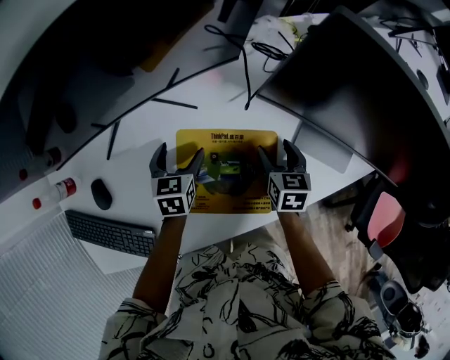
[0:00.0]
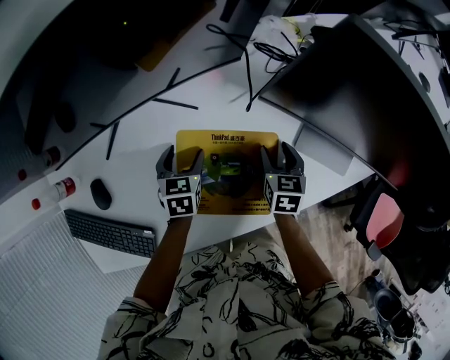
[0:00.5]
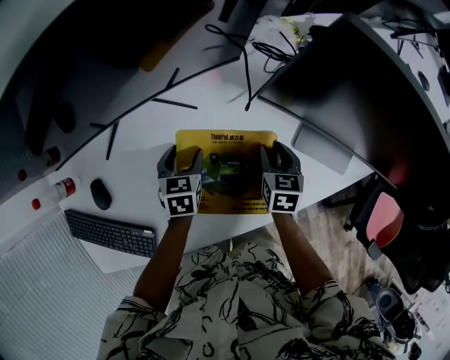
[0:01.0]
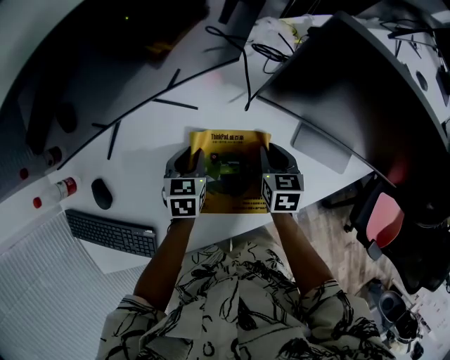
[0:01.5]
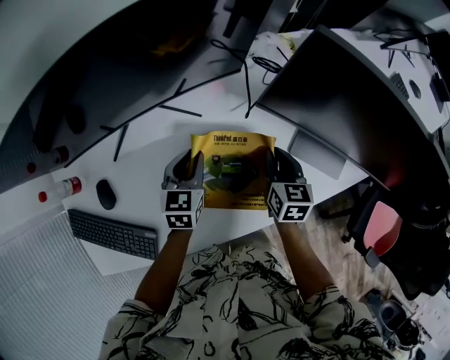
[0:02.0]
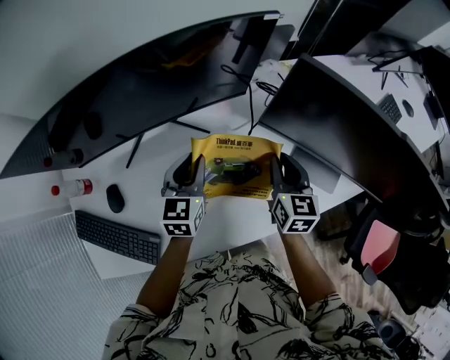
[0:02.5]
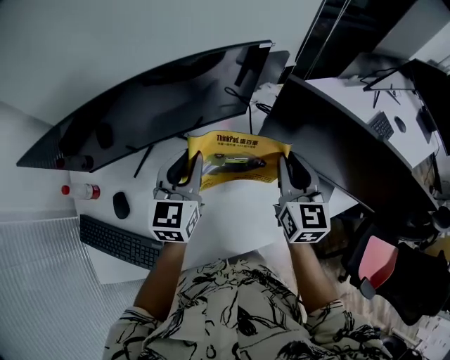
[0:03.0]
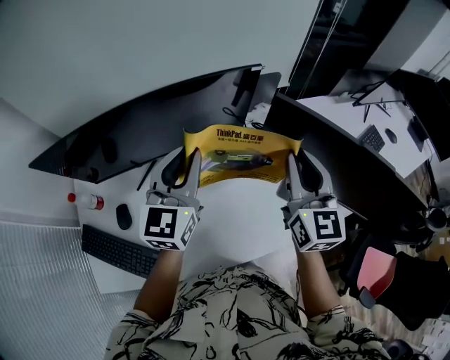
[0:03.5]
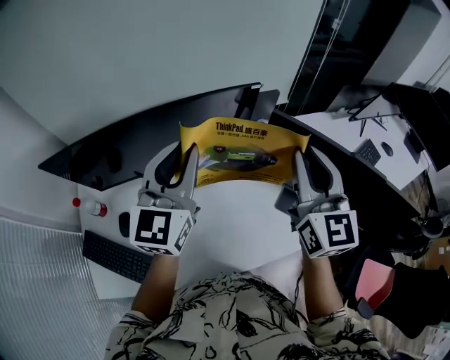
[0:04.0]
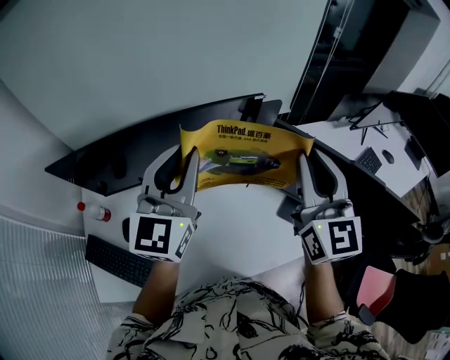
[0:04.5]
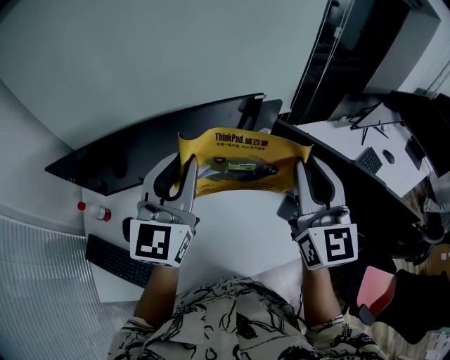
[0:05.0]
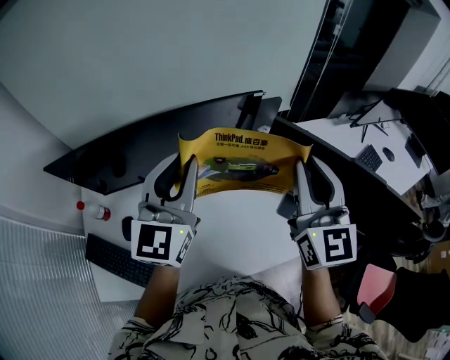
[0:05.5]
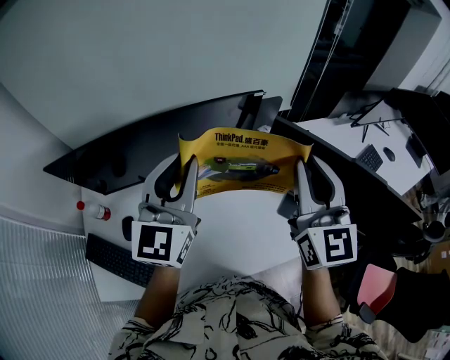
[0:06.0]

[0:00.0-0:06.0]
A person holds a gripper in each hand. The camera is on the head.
0:00.0 to 0:02.0: The two grippers go approximately 5 cm upward. The right gripper closes, while the left gripper closes up.
0:02.0 to 0:04.0: Both grippers move upward, approximately 40 cm. The right gripper tips its fingers upward by about 40 degrees; the left gripper angles its fingers upward, by roughly 40 degrees.
0:04.0 to 0:06.0: The grippers move only a little.

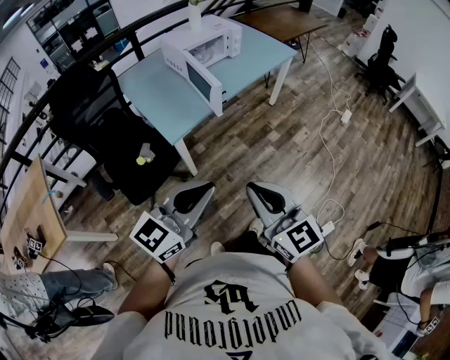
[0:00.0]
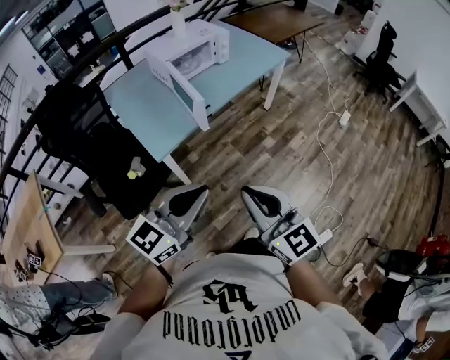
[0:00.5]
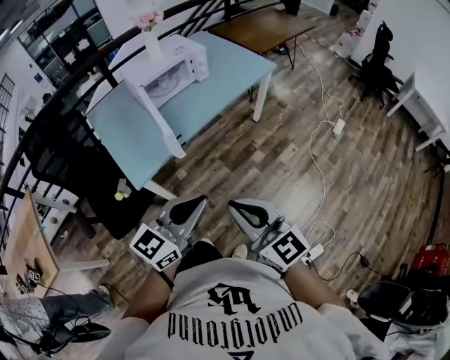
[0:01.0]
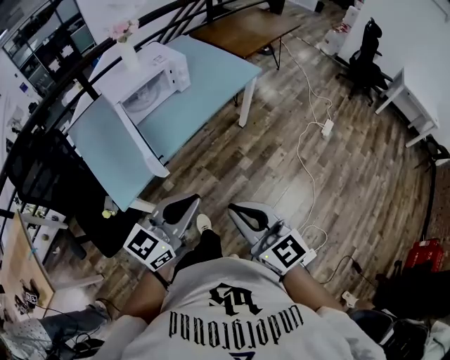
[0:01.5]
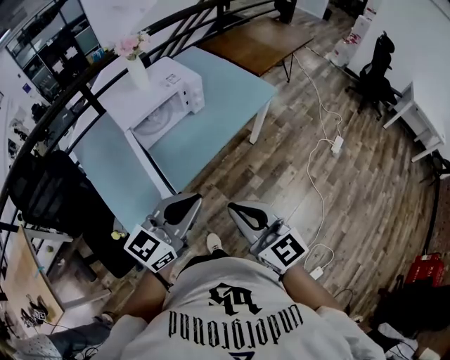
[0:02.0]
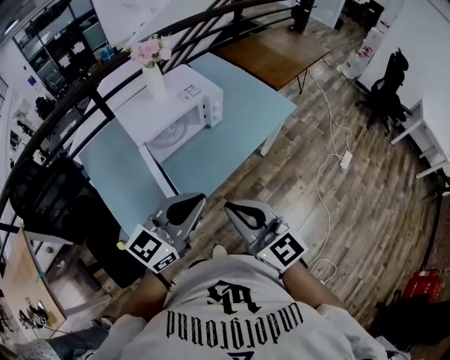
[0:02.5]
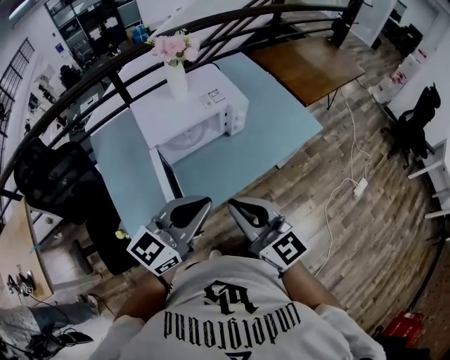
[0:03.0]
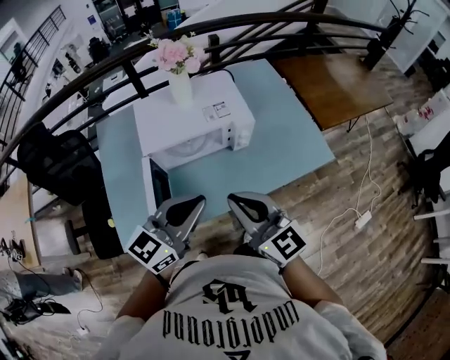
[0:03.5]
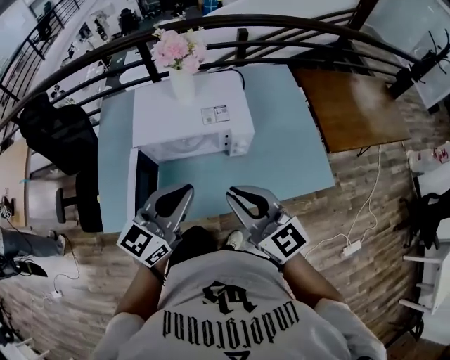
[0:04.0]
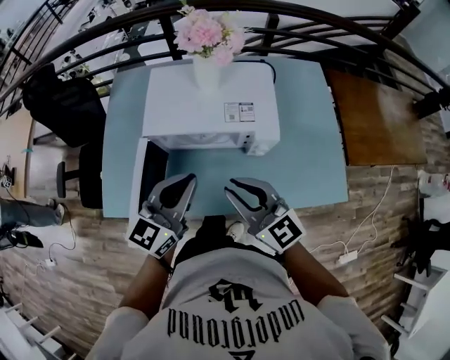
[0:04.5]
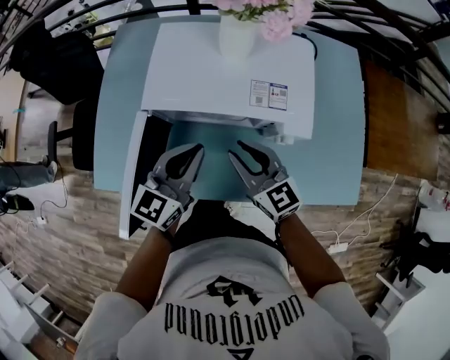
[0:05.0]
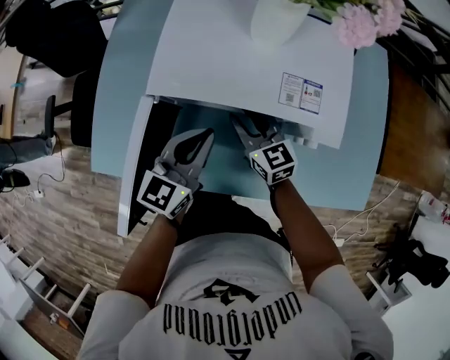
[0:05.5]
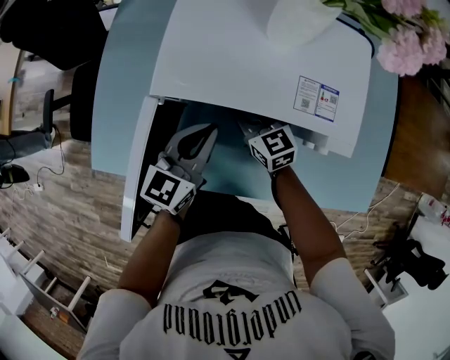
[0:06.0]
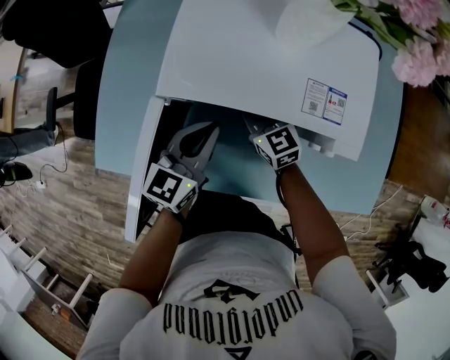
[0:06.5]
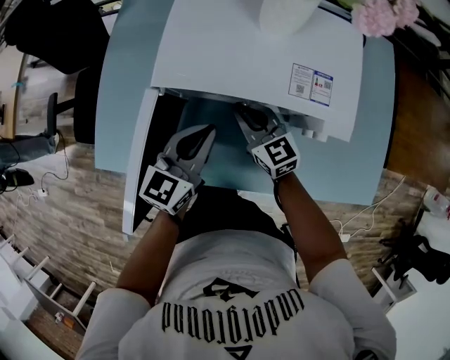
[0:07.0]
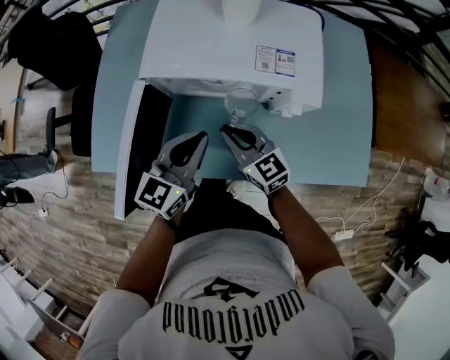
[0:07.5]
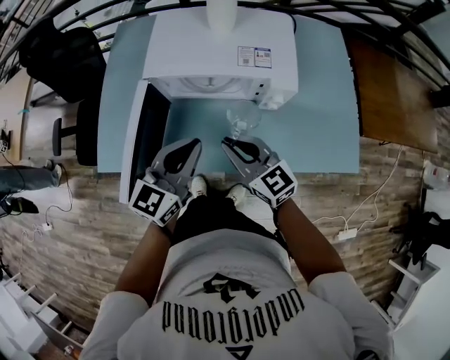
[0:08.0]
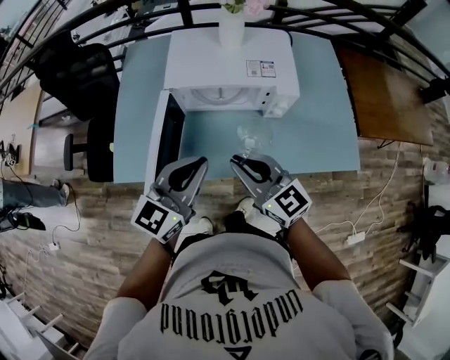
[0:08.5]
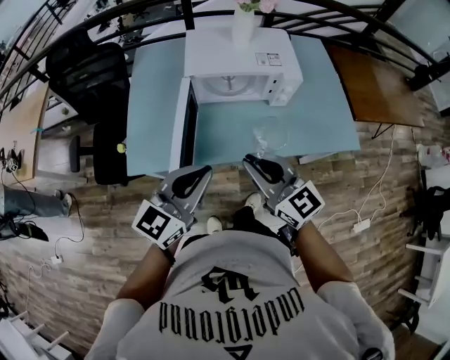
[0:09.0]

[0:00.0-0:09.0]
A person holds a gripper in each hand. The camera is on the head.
0:00.0 to 0:02.0: The pair of grippers is taken forward, roughly 40 cm.
0:02.0 to 0:04.5: The right gripper moves approximately 50 cm, and swivels approximately 50 degrees. The left gripper changes place by approximately 40 cm, and changes its angle by some 50 degrees.
0:04.5 to 0:07.0: Both grippers travel together downward and forward, approximately 25 cm.
0:07.0 to 0:09.0: Both grippers travel together backward and upward, roughly 35 cm. The left gripper rotates roughly 20 degrees.

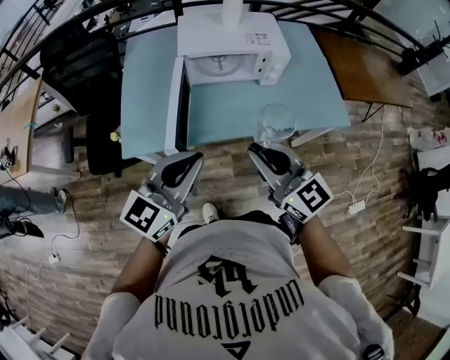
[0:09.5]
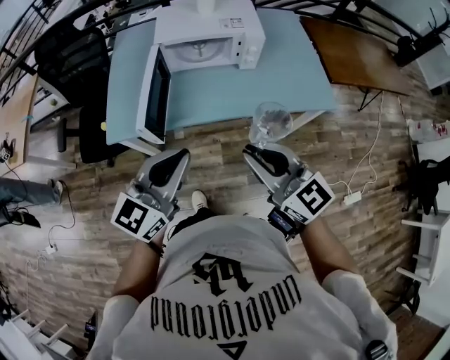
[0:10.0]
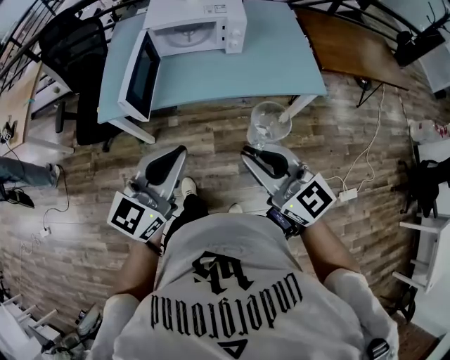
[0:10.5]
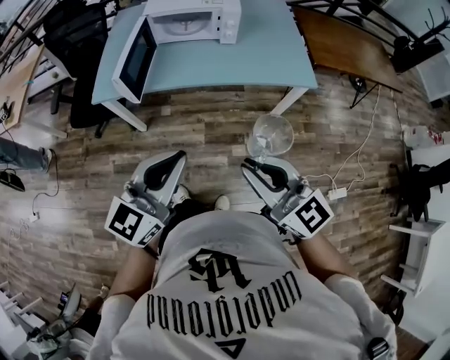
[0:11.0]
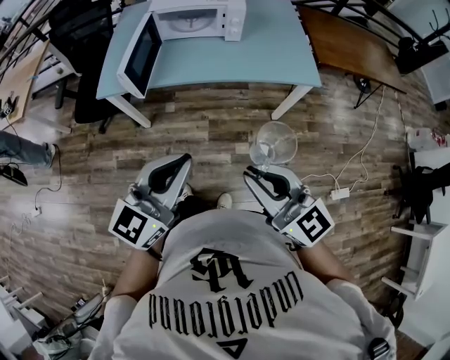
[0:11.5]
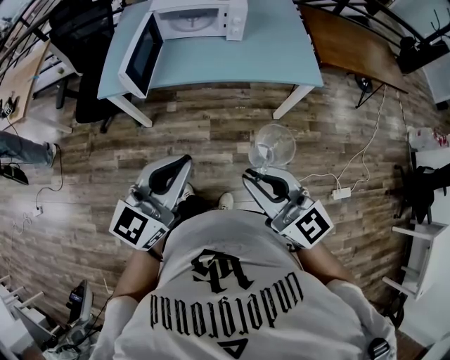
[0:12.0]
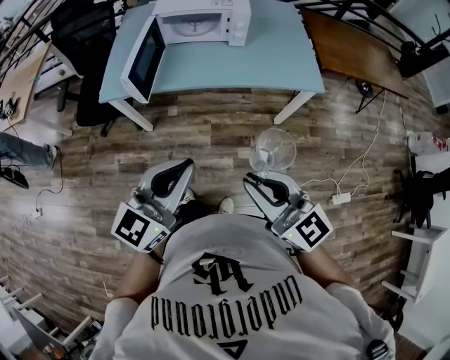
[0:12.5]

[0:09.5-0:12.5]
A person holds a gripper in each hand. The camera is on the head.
0:09.5 to 0:11.0: The two grippers go about 30 cm backward and to the right.
0:11.0 to 0:12.5: The grippers stay close to where they were, moving slightly.

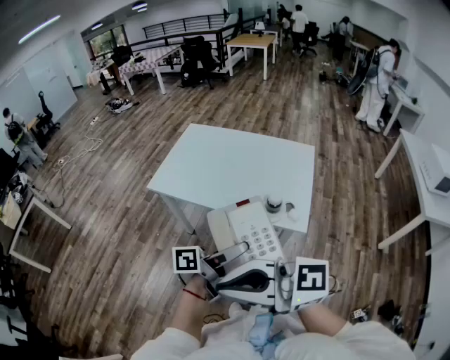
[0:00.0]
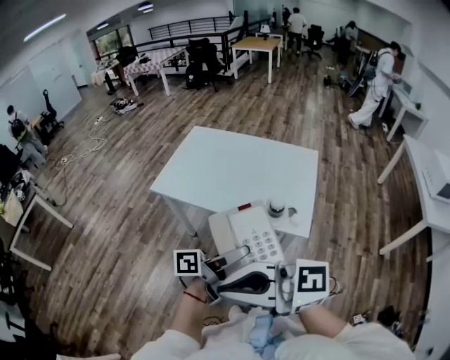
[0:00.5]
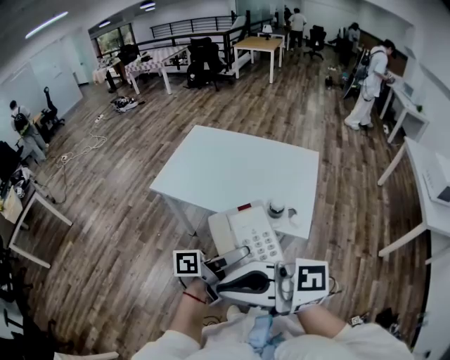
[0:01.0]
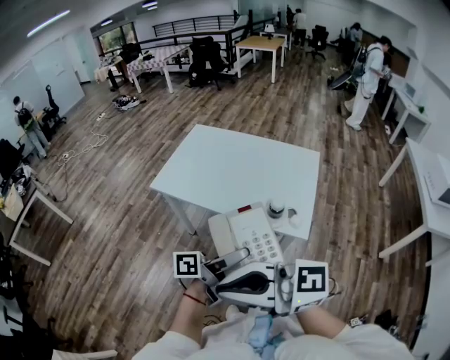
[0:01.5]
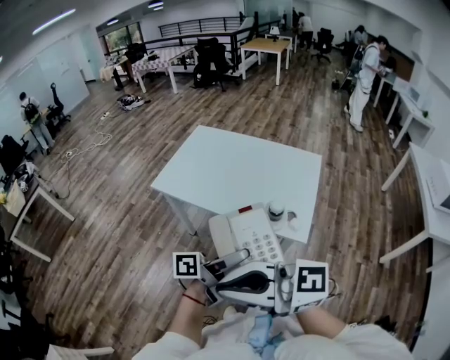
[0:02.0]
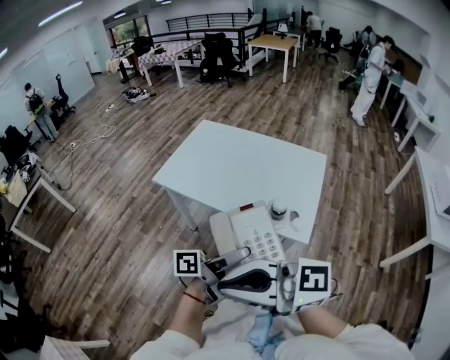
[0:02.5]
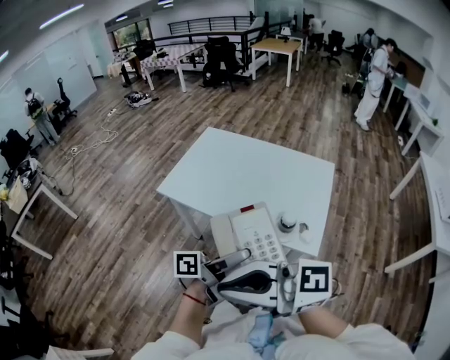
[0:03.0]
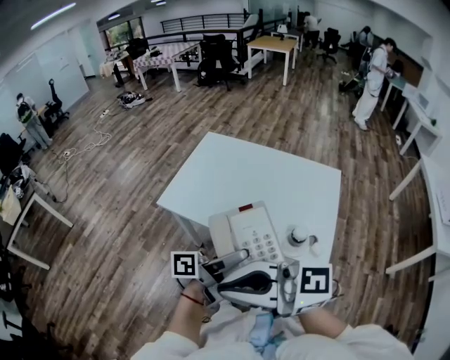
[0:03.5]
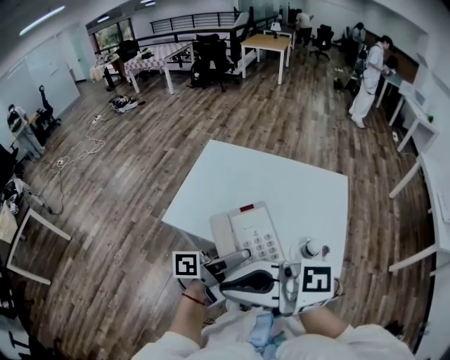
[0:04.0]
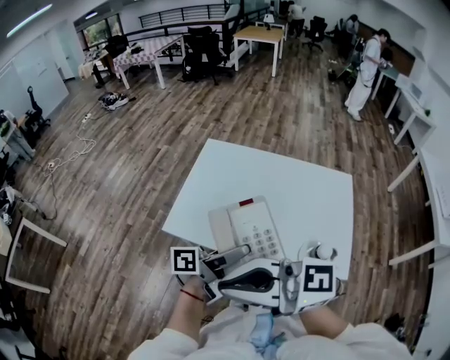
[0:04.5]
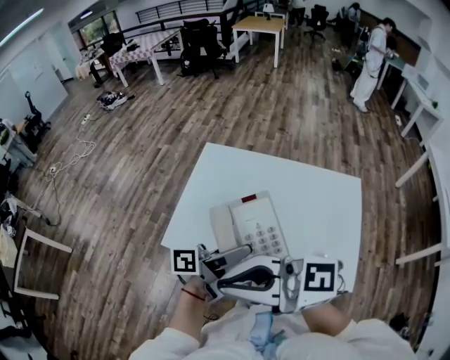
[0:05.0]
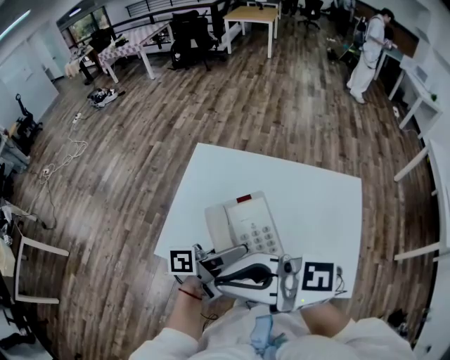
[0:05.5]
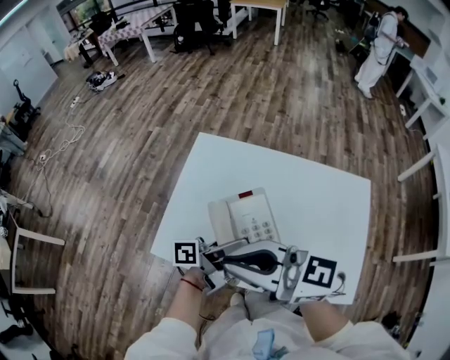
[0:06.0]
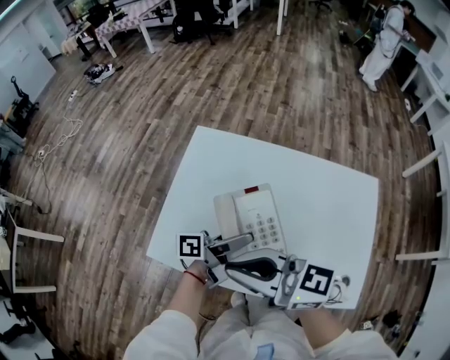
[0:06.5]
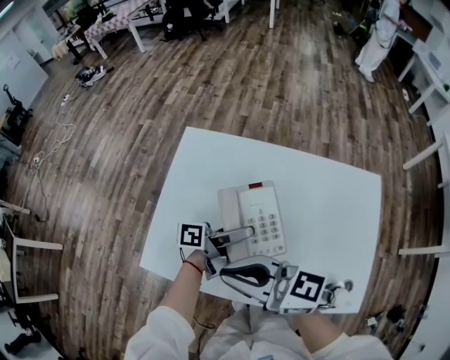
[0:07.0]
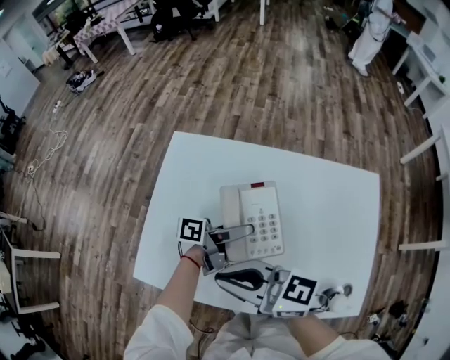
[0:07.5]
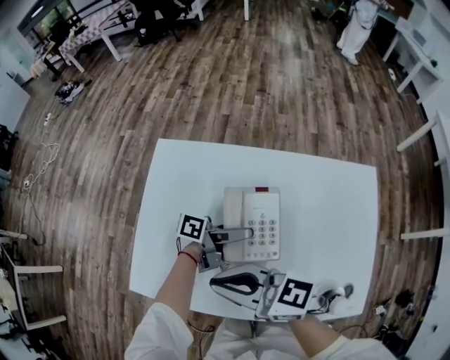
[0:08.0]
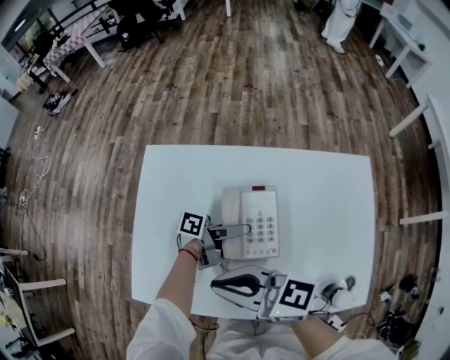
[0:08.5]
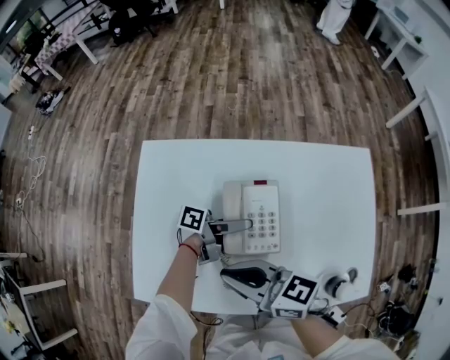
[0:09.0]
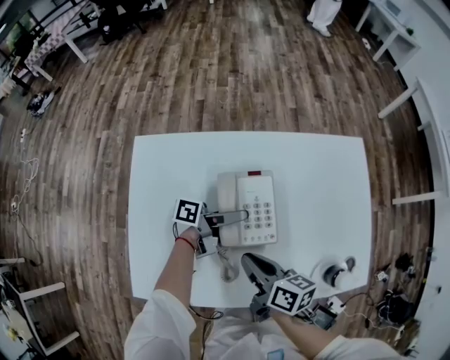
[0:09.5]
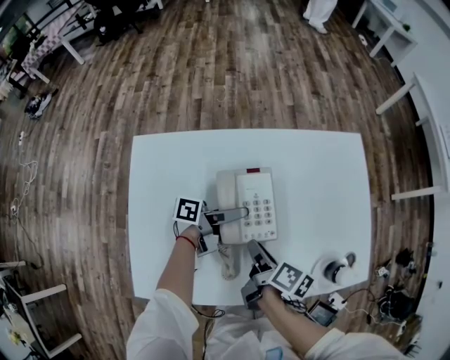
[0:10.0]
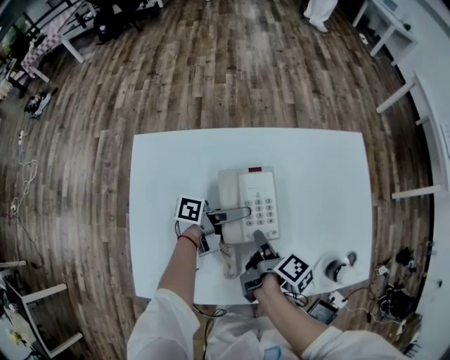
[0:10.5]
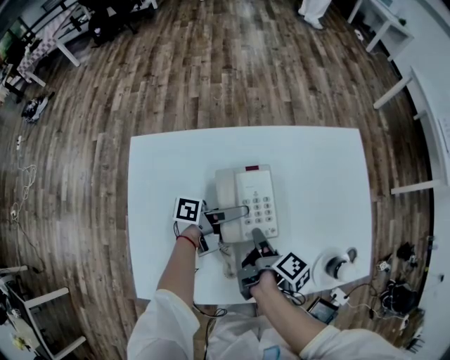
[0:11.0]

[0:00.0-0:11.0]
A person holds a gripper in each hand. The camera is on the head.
0:00.0 to 0:02.0: The grippers stay close to where they were, moving slightly.
0:02.0 to 0:03.5: The left gripper changes place by roughly 15 cm. Meanwhile the right gripper ends up some 15 cm from where it was.
0:03.5 to 0:05.5: The left gripper changes place by about 30 cm. Meanwhile the right gripper changes place by some 30 cm.
0:05.5 to 0:07.5: The two grippers go roughly 20 cm downward. The right gripper swivels roughly 20 degrees.
0:07.5 to 0:09.0: The right gripper ends up about 5 cm from where it was. The left gripper ends up about 5 cm from where it was.
0:09.0 to 0:11.0: The right gripper travels downward by roughly 15 cm, tips its fingers downward by roughly 30 degrees, and opens up.
